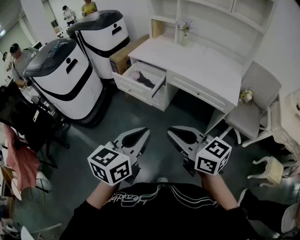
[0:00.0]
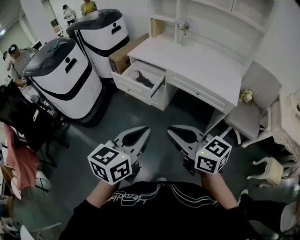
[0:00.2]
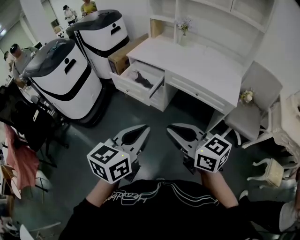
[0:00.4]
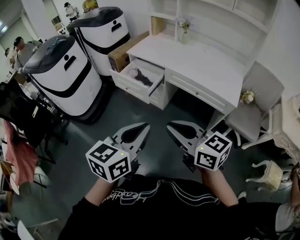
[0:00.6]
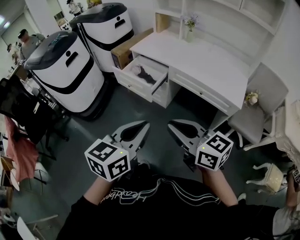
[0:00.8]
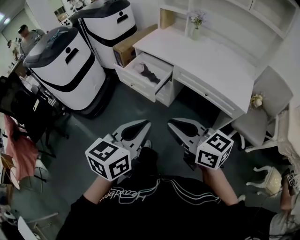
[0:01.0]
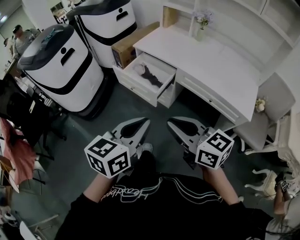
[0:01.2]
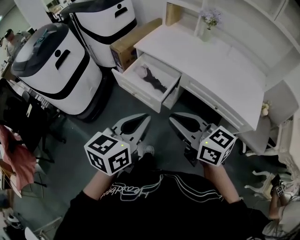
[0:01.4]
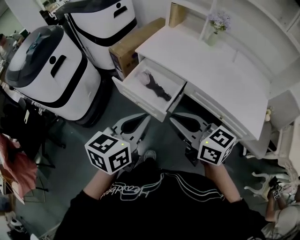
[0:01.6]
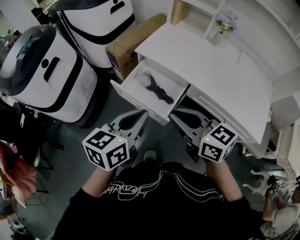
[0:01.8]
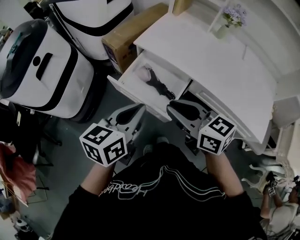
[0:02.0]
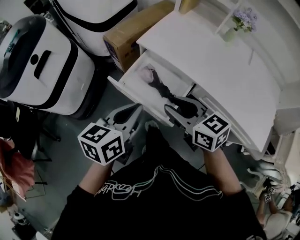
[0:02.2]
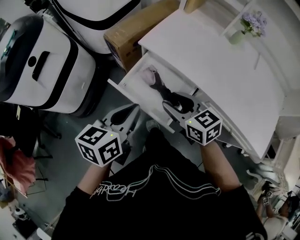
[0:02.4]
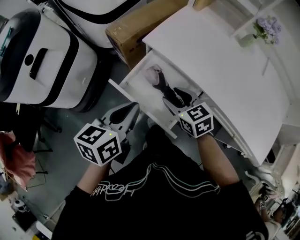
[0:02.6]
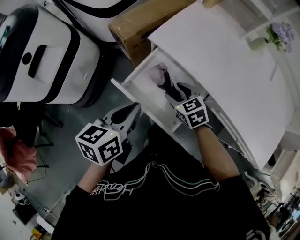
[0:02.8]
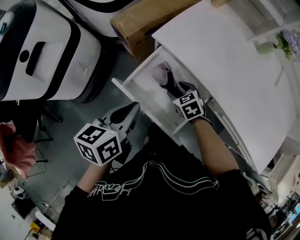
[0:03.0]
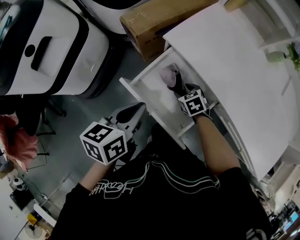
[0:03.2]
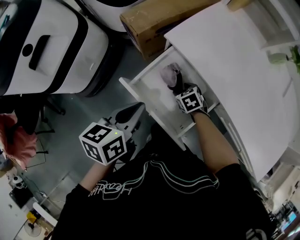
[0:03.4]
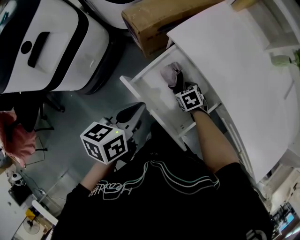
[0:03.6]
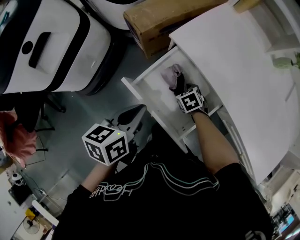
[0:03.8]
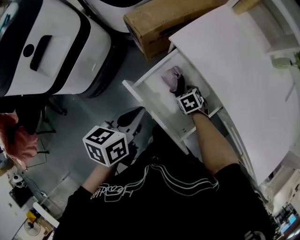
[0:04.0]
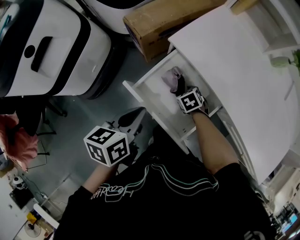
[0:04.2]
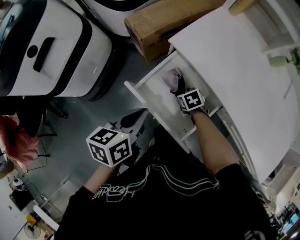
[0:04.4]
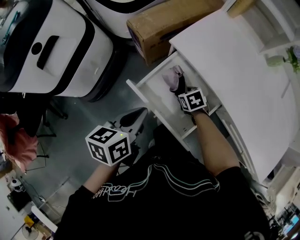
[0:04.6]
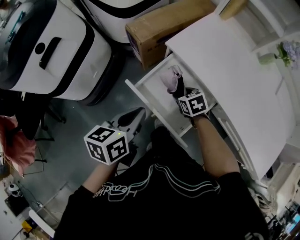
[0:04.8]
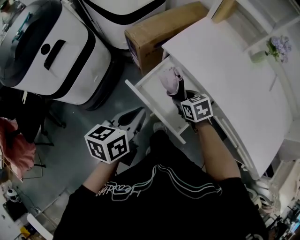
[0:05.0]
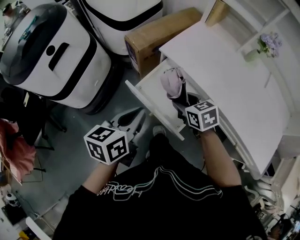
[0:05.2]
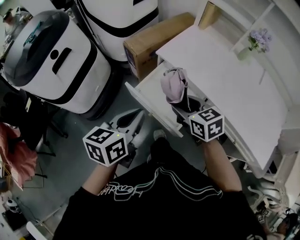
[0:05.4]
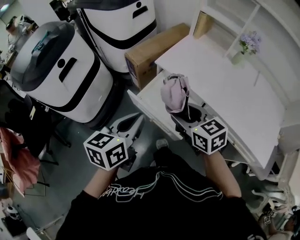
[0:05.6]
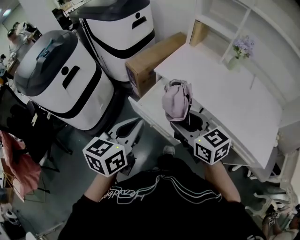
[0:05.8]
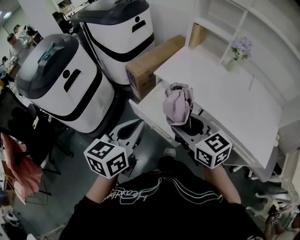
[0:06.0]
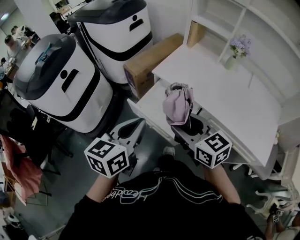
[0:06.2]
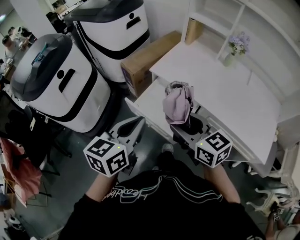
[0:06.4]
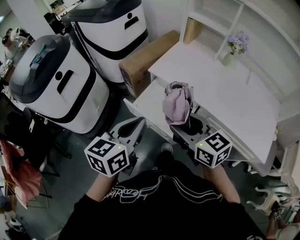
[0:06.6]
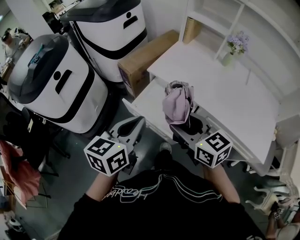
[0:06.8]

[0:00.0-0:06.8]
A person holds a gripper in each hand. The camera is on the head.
0:00.0 to 0:01.4: Both grippers move forward, roughly 30 cm.
0:01.4 to 0:02.8: Both grippers move forward and downward, approximately 50 cm. The left gripper changes its angle by about 20 degrees. The right gripper tilts its fingers roughly 40 degrees downward, and opens its fingers.
0:02.8 to 0:04.0: The right gripper shifts some 15 cm downward, and rotates roughly 30 degrees. The left gripper moves downward, approximately 5 cm.
0:04.0 to 0:05.4: The left gripper is displaced upward and backward by roughly 20 cm; the right gripper travels upward and backward by approximately 35 cm, and angles its fingers upward, by roughly 40 degrees.
0:05.4 to 0:06.8: The right gripper travels upward and backward by approximately 15 cm; the left gripper goes about 10 cm upward.

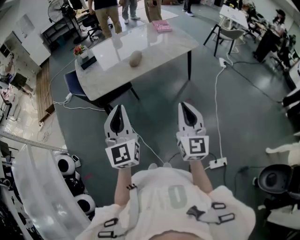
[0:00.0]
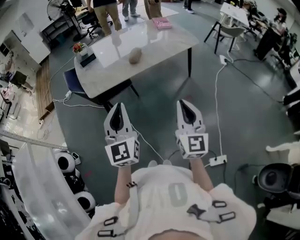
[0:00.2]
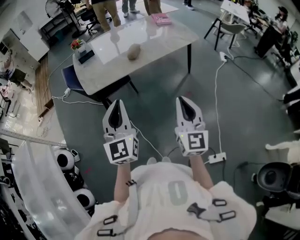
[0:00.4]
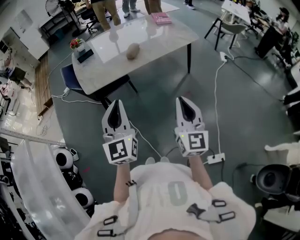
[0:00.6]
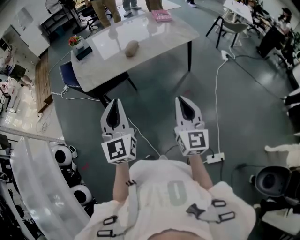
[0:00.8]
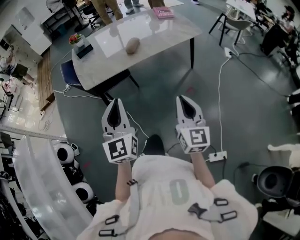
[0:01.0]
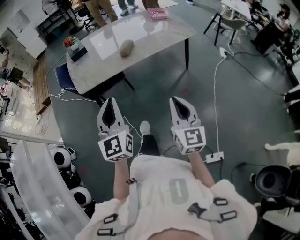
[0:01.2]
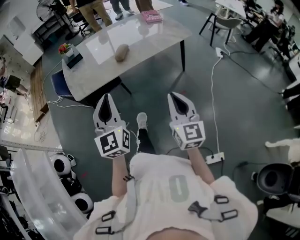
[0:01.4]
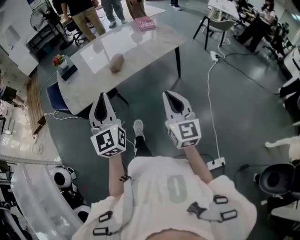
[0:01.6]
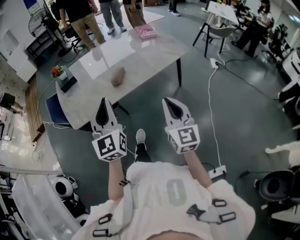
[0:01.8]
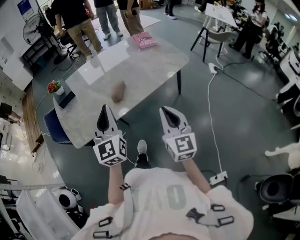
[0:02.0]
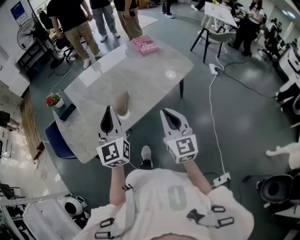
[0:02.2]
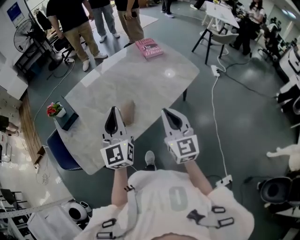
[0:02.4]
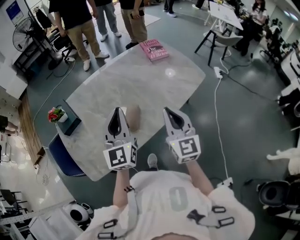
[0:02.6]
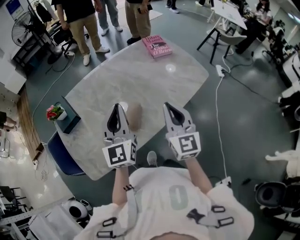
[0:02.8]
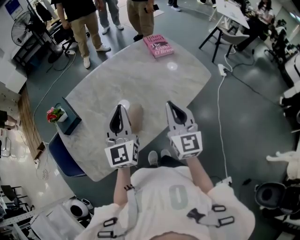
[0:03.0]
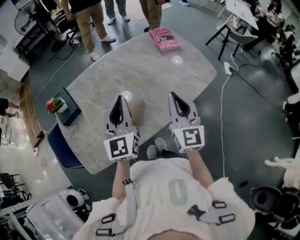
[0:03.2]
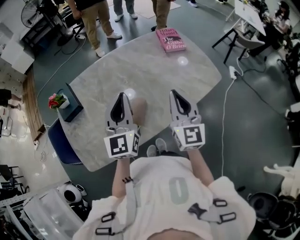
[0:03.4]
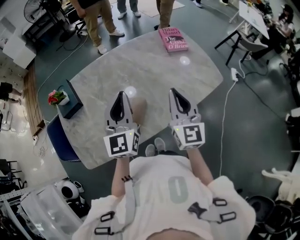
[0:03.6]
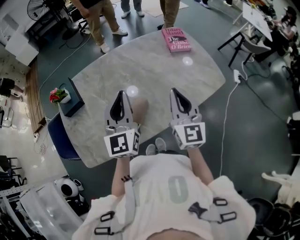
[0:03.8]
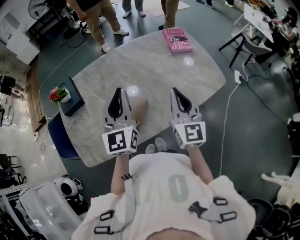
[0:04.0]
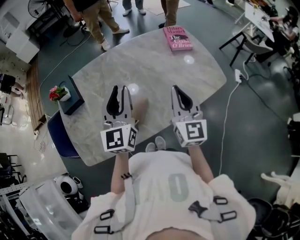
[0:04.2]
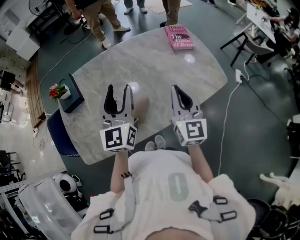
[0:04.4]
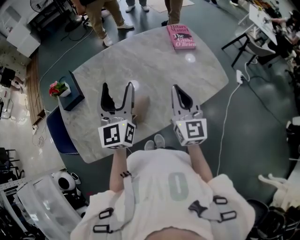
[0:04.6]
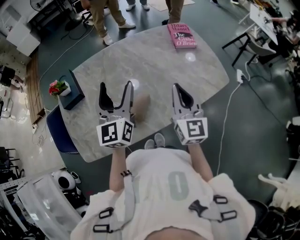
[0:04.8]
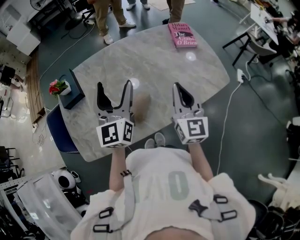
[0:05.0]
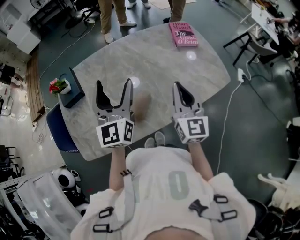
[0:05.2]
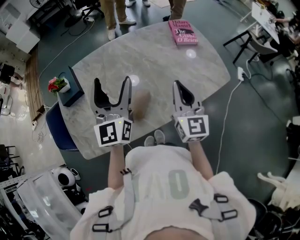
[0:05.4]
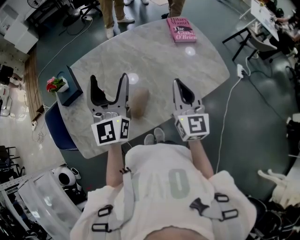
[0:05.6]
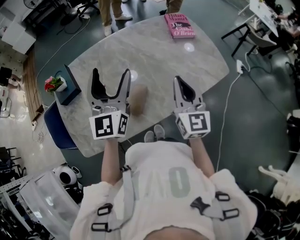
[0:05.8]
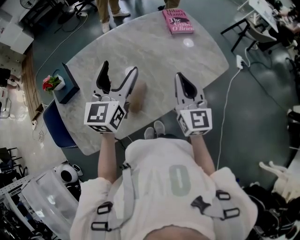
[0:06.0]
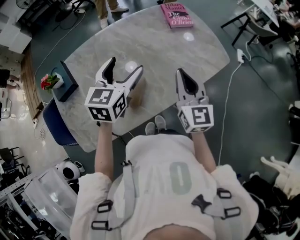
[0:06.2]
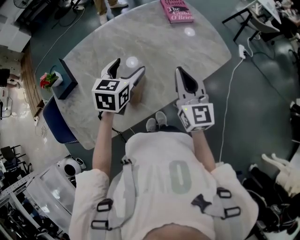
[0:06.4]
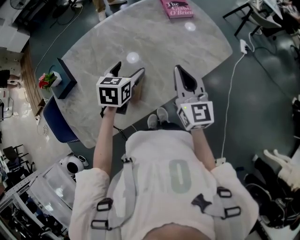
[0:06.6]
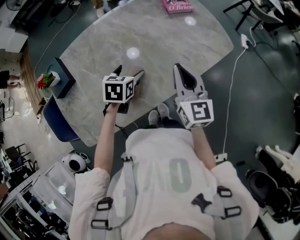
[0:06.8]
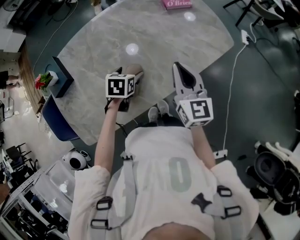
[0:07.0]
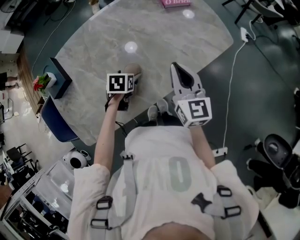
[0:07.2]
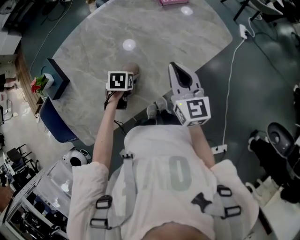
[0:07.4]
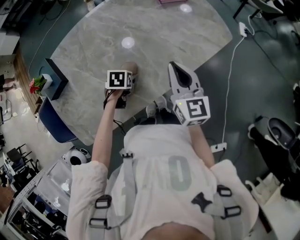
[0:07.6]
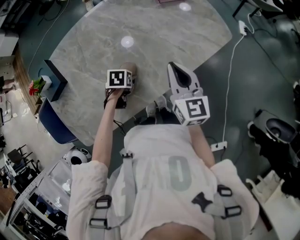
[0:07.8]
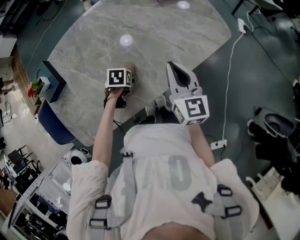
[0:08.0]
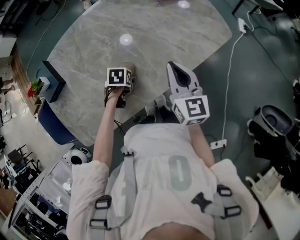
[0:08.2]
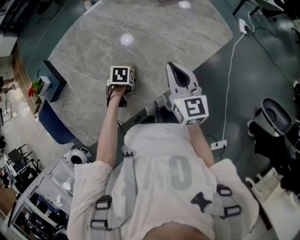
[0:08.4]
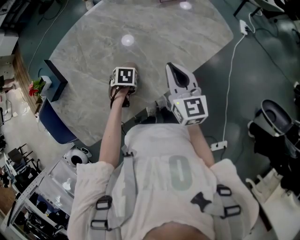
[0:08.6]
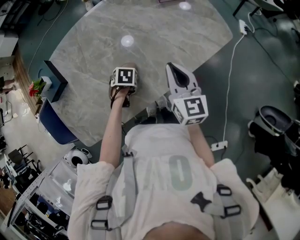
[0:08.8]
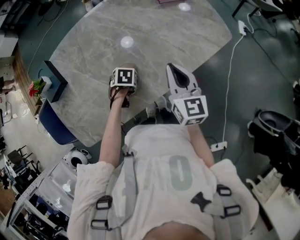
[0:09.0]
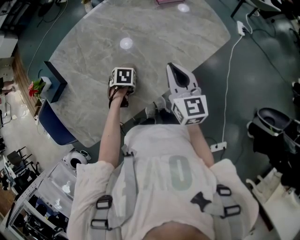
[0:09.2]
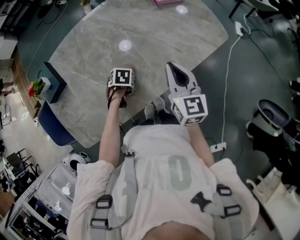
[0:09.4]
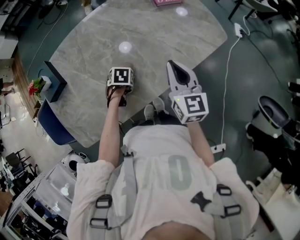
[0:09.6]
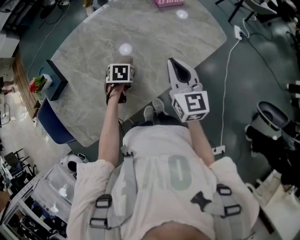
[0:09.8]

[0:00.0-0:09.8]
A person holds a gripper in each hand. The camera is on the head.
0:00.0 to 0:01.4: The right gripper goes some 10 cm forward and downward. Meanwhile the left gripper heads forward, covering approximately 5 cm.
0:01.4 to 0:02.8: The pair of grippers is taken forward, approximately 50 cm.
0:02.8 to 0:04.2: The right gripper heads forward, covering roughly 10 cm, while the left gripper shifts some 5 cm forward.
0:04.2 to 0:05.6: The left gripper opens.
0:05.6 to 0:07.0: The left gripper moves downward, some 30 cm, and tips its fingers downward by some 70 degrees, while the right gripper shifts approximately 5 cm downward.
0:07.0 to 0:08.4: The left gripper moves downward, some 10 cm, and turns by some 20 degrees.
0:08.4 to 0:09.8: There are only small adjustments of the grippers.

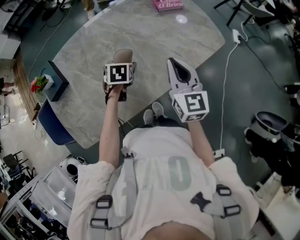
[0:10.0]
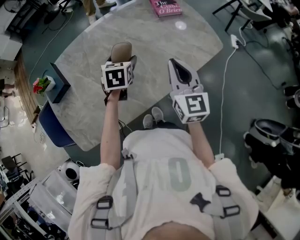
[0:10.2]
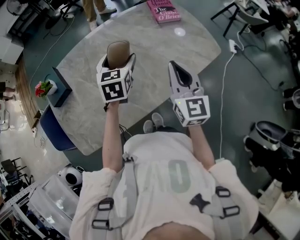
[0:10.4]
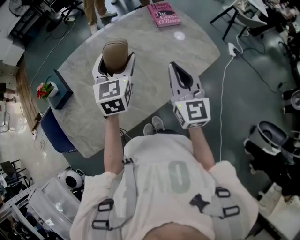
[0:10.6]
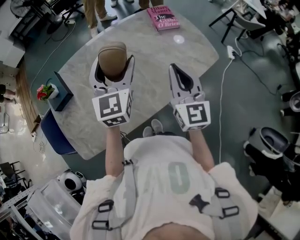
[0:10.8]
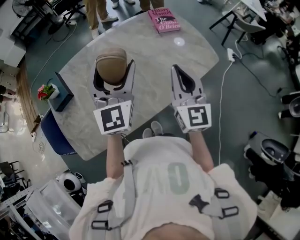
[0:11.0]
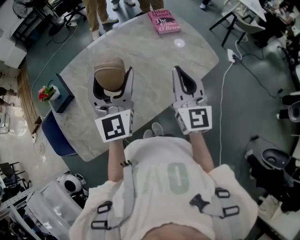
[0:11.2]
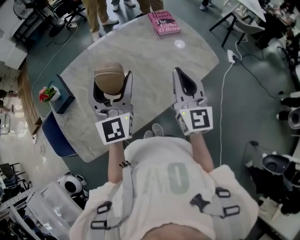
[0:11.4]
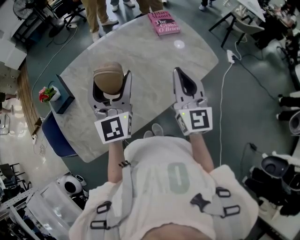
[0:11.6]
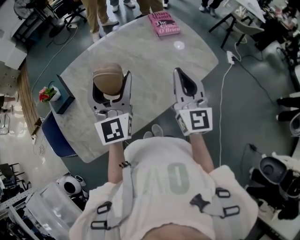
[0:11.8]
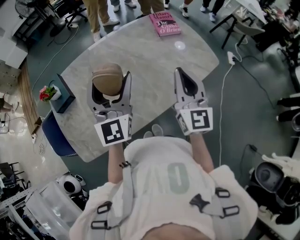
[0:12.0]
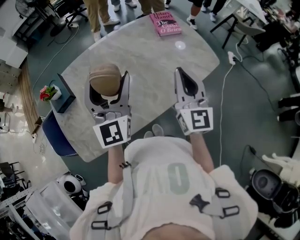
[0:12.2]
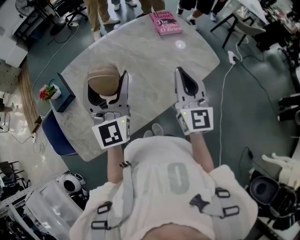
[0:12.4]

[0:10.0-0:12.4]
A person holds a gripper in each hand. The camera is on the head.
0:10.0 to 0:11.2: The right gripper goes some 10 cm upward; the left gripper shifts about 30 cm upward, and tilts its fingers some 70 degrees upward.
0:11.2 to 0:12.4: The grippers stay close to where they were, moving slightly.

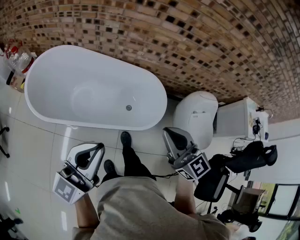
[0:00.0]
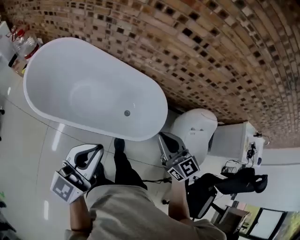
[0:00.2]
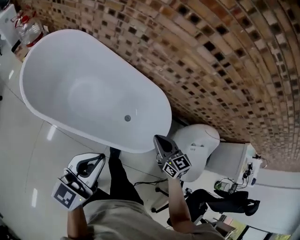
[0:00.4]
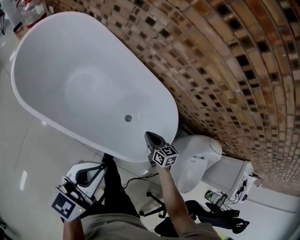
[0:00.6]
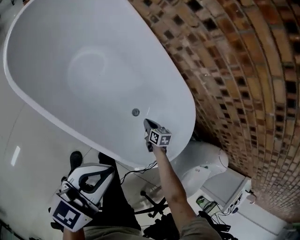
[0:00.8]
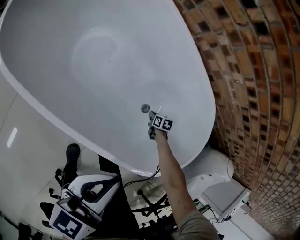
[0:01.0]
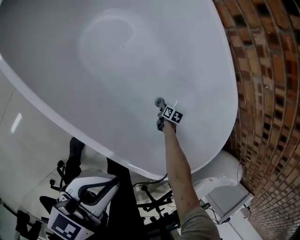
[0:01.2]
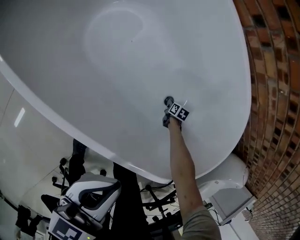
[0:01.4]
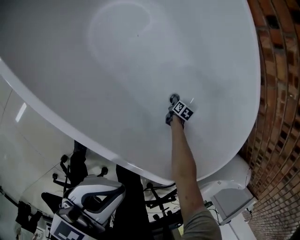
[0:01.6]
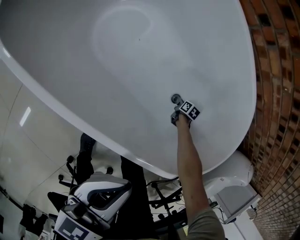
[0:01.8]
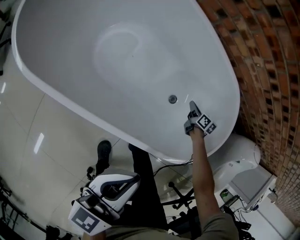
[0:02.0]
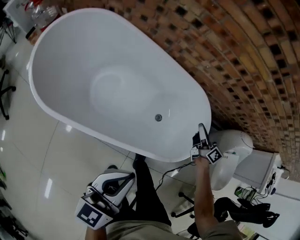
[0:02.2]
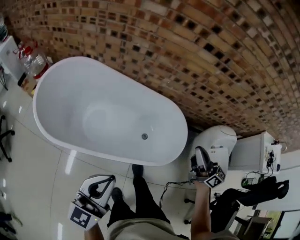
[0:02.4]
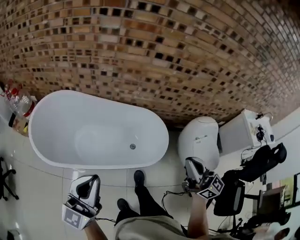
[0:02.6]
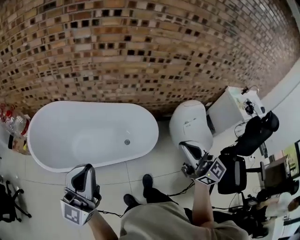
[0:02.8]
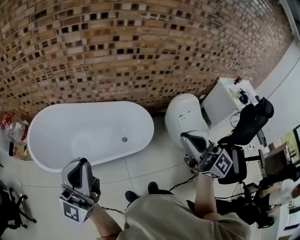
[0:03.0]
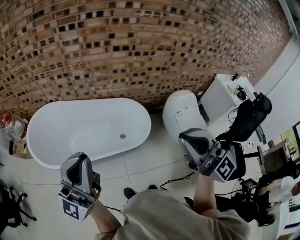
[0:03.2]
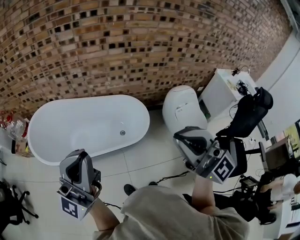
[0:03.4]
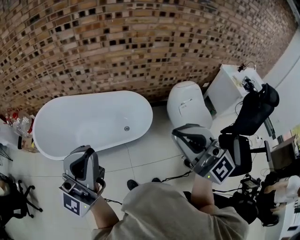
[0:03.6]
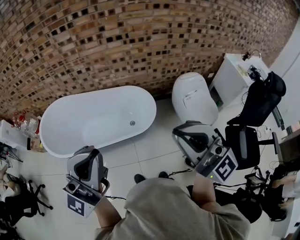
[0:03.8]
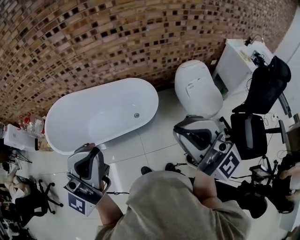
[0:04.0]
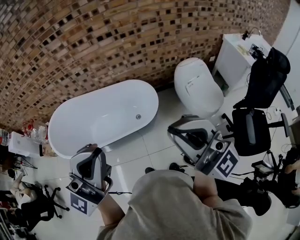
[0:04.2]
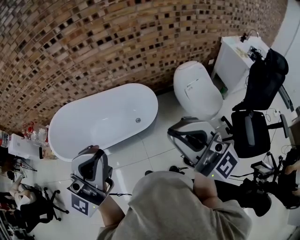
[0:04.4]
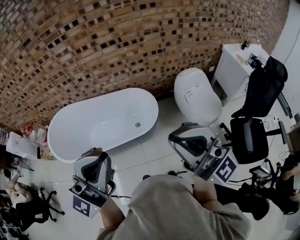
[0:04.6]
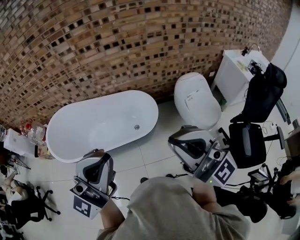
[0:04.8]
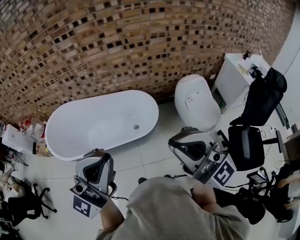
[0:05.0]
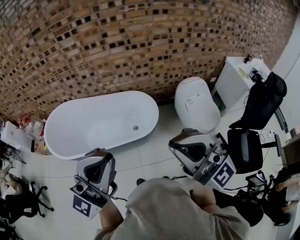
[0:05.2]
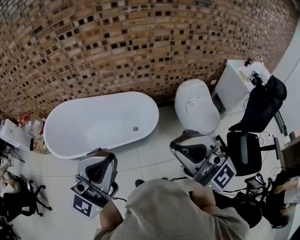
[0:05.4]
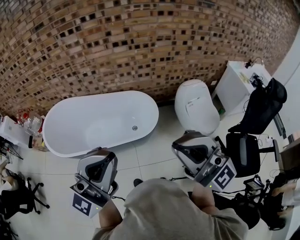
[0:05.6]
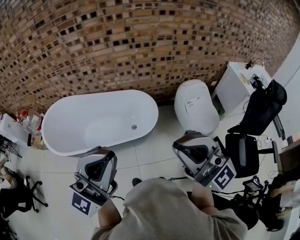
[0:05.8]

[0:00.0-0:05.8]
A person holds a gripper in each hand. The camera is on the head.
0:00.0 to 0:01.4: The right gripper goes about 1 m downward, and angles its fingers downward, by approximately 70 degrees. The left gripper moves downward and forward, approximately 40 cm, and changes its angle by some 30 degrees.
0:01.4 to 0:02.8: The right gripper goes some 1 m upward, and points its fingers roughly 90 degrees further upward, while the left gripper heads upward, covering approximately 50 cm, and angles its fingers upward, by approximately 40 degrees.
0:02.8 to 0:04.4: The right gripper goes about 25 cm backward, upward and to the right, and swivels some 30 degrees; the left gripper is displaced to the right, backward and upward by about 30 cm, and turns by approximately 20 degrees.
0:04.4 to 0:05.8: There are only small adjustments of the grippers.
